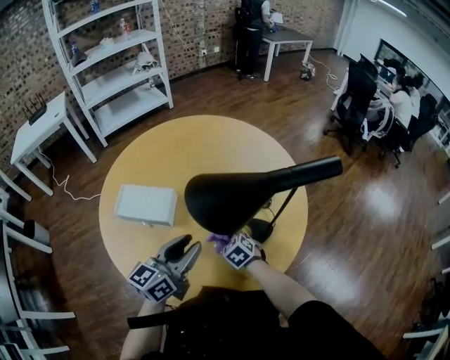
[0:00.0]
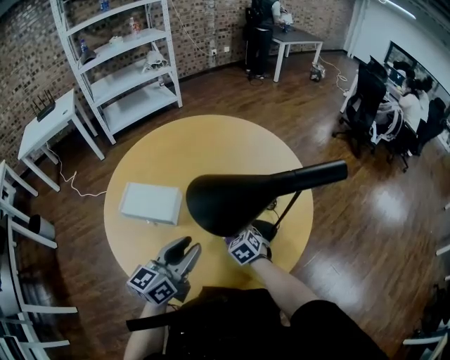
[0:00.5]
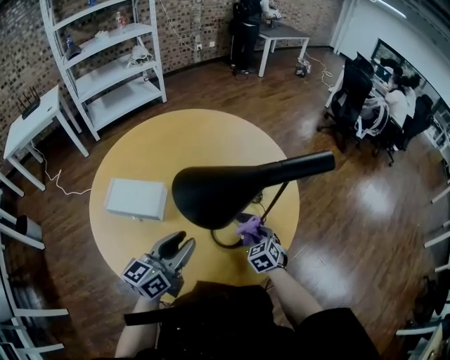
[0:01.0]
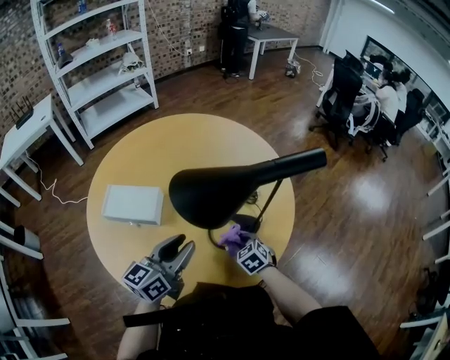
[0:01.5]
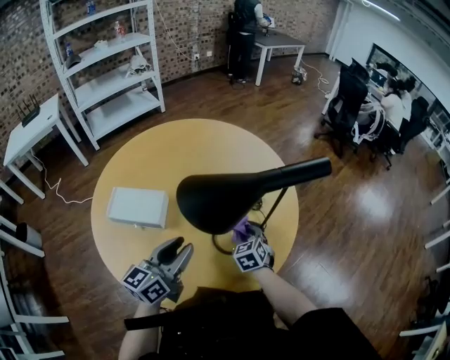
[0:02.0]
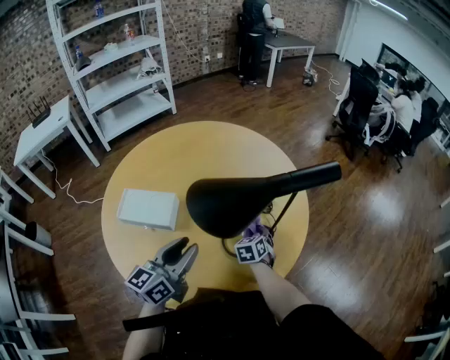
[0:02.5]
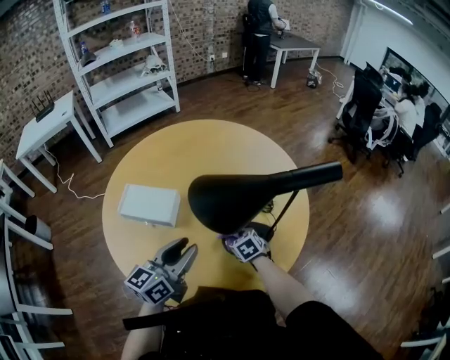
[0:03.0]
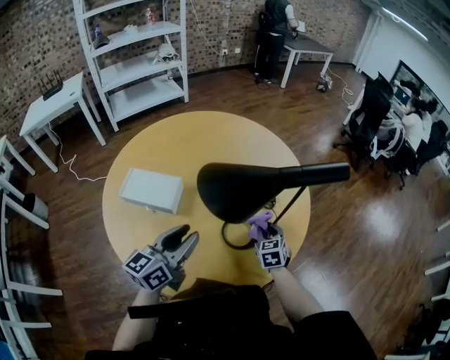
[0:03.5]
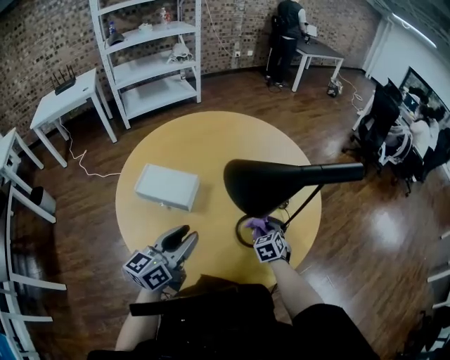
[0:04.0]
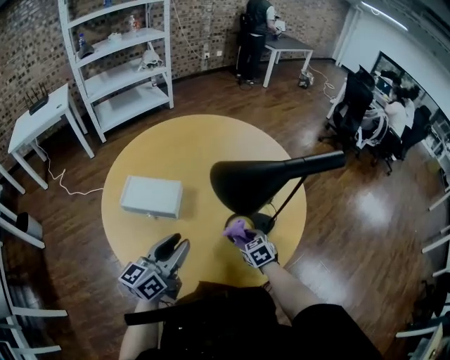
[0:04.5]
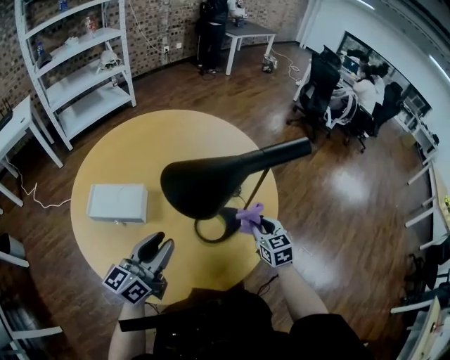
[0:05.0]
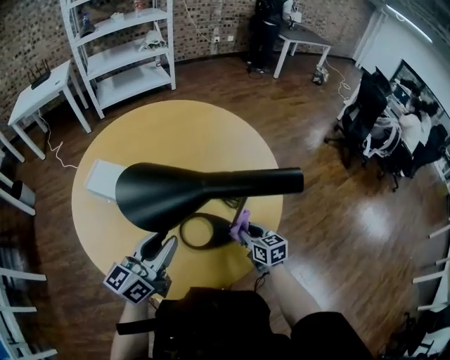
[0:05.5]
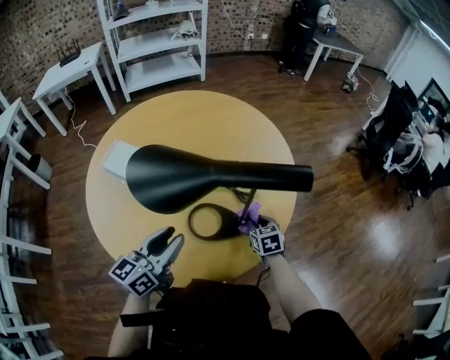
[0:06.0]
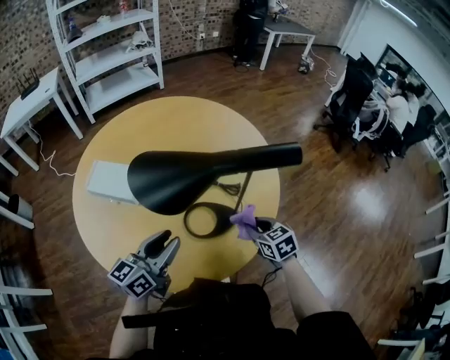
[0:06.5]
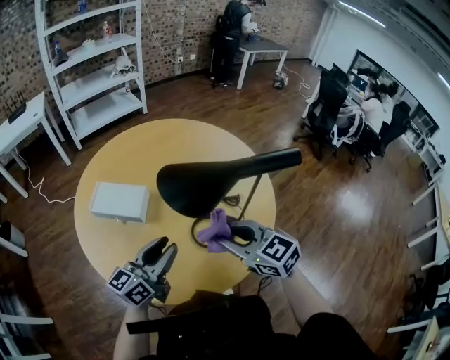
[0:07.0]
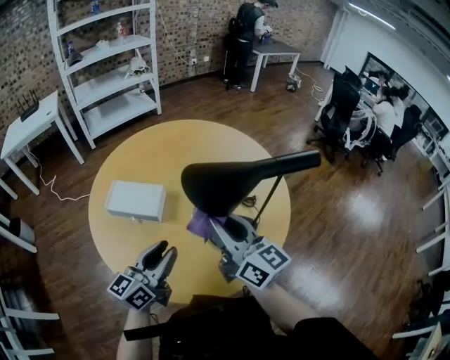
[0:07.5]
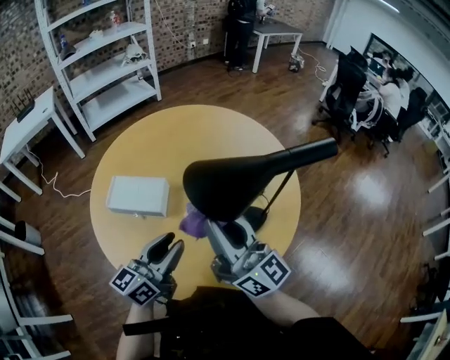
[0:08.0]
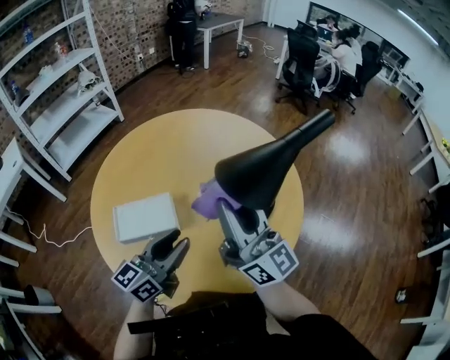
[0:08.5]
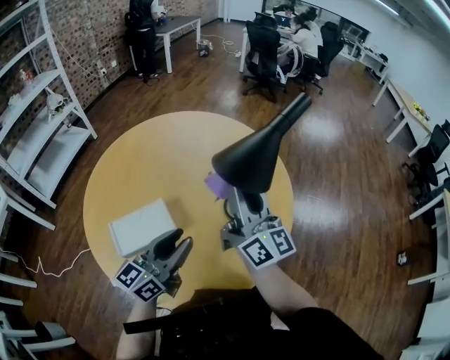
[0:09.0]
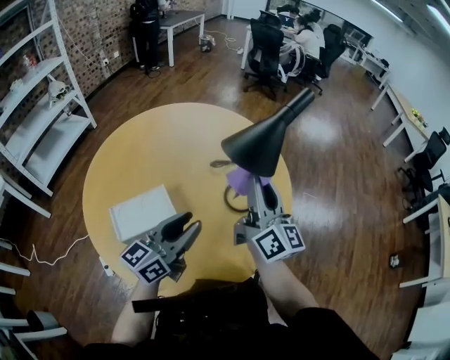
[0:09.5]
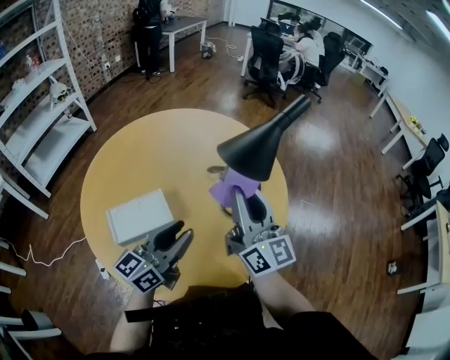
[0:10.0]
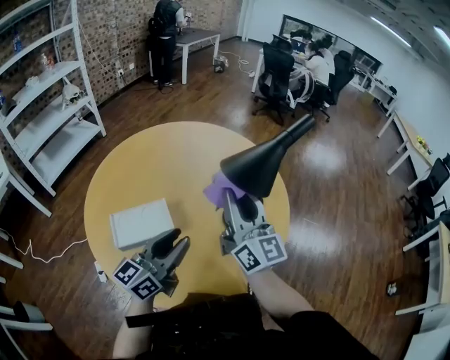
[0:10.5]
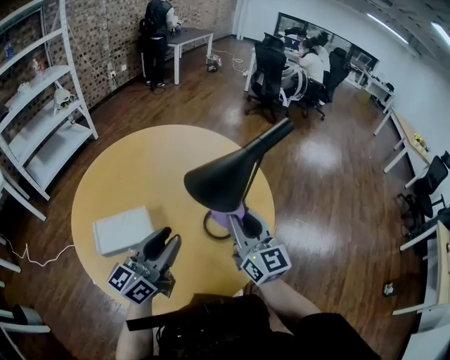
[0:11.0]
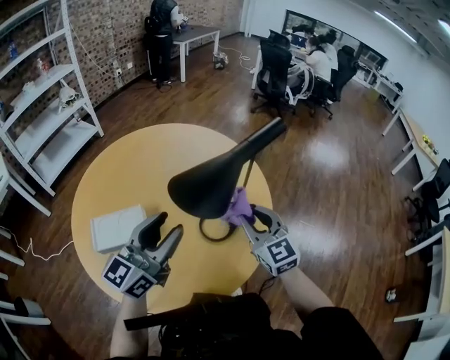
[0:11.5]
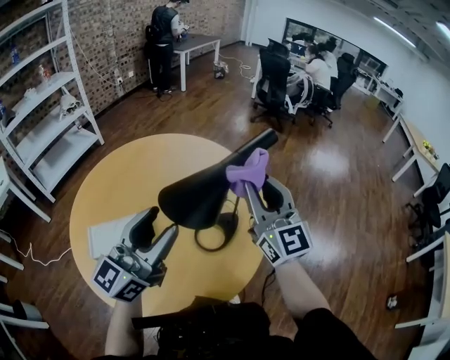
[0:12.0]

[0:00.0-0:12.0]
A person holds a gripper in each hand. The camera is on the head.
0:00.0 to 0:02.0: The right gripper heads to the right, covering some 10 cm, and rotates about 30 degrees.
0:02.0 to 0:04.0: The left gripper shifts by approximately 5 cm.
0:04.0 to 0:06.0: The grippers both shift to the right by approximately 10 cm.
0:06.0 to 0:08.0: The left gripper moves to the left, about 10 cm, while the right gripper shifts some 40 cm upward and to the left, and tilts its fingers roughly 70 degrees upward.
0:08.0 to 0:10.0: The right gripper turns by approximately 50 degrees, while the left gripper changes place by roughly 5 cm, and swivels roughly 30 degrees.
0:10.0 to 0:12.0: The left gripper moves upward and to the right, some 15 cm, swivels some 20 degrees, and opens up; the right gripper heads to the right and forward, covering about 15 cm, travels downward and back again, approximately 10 cm each way, and changes its angle by approximately 20 degrees.

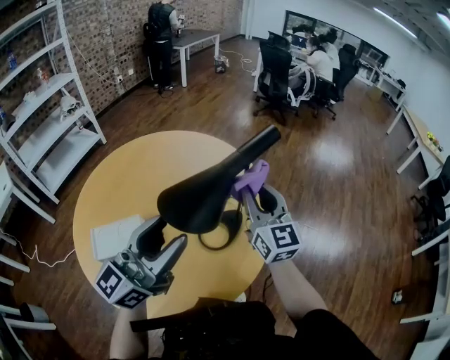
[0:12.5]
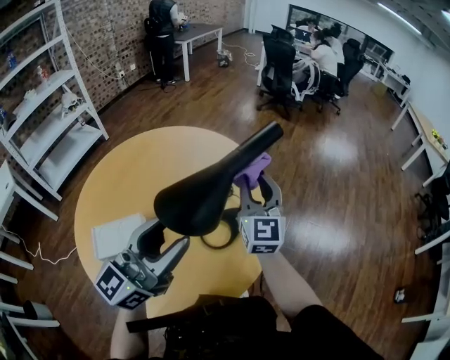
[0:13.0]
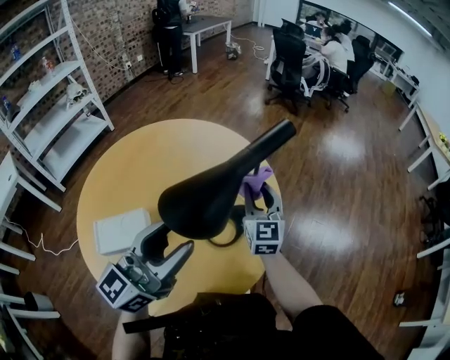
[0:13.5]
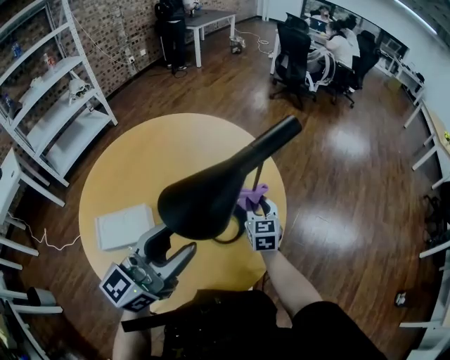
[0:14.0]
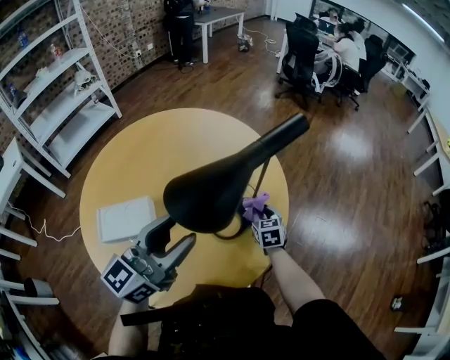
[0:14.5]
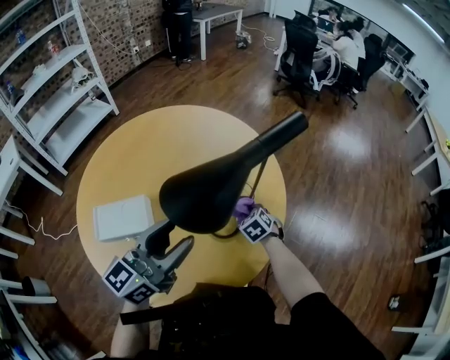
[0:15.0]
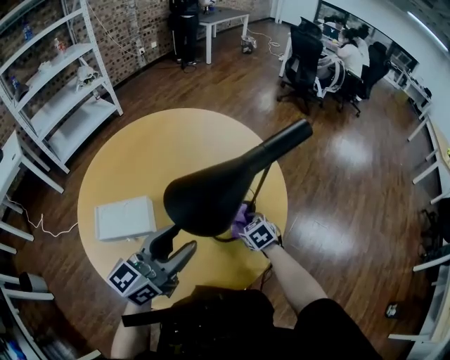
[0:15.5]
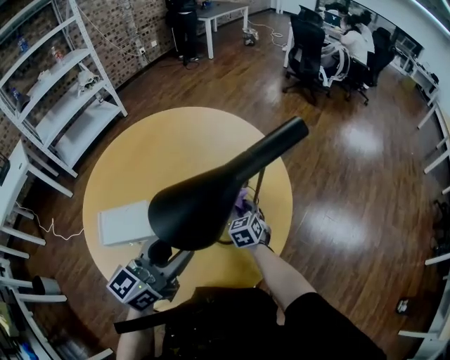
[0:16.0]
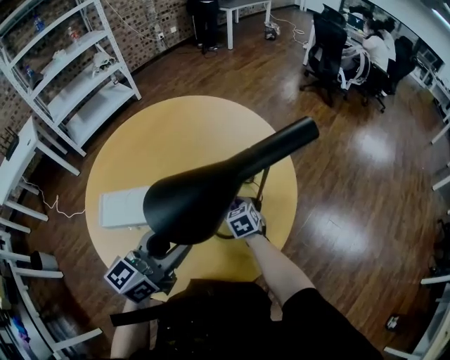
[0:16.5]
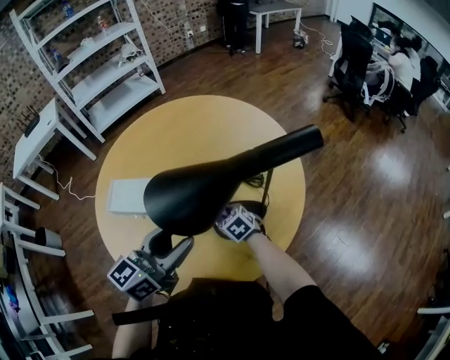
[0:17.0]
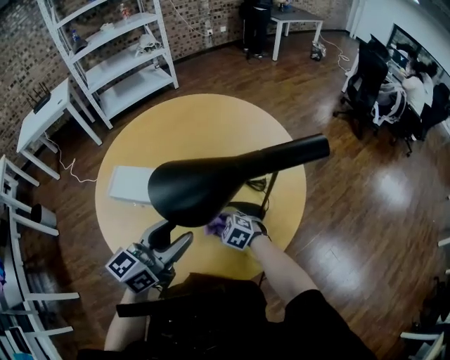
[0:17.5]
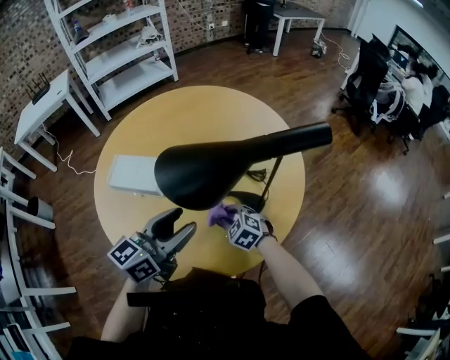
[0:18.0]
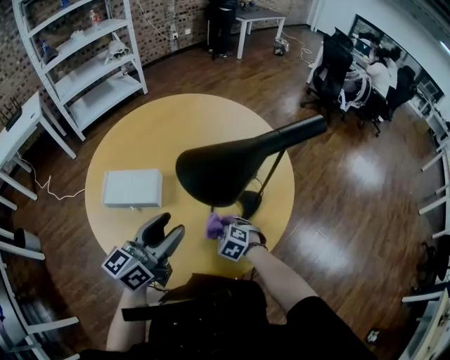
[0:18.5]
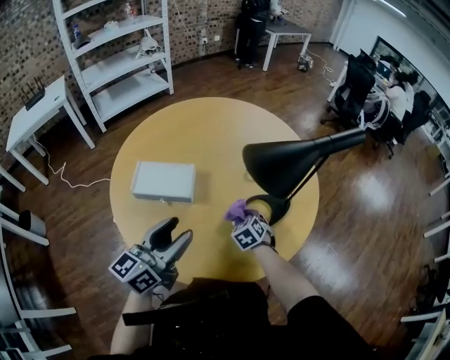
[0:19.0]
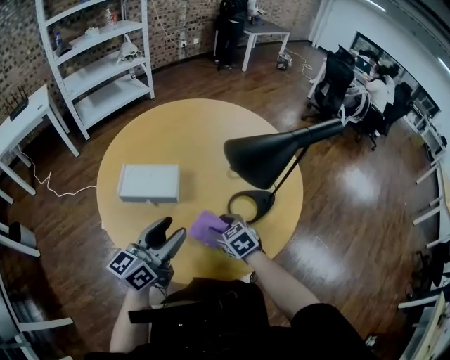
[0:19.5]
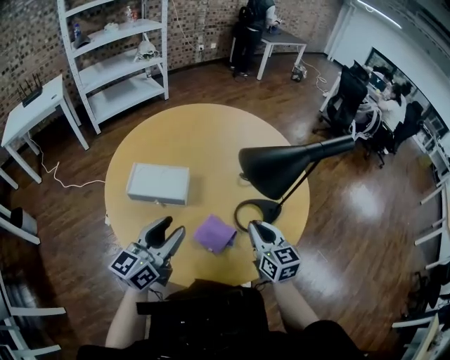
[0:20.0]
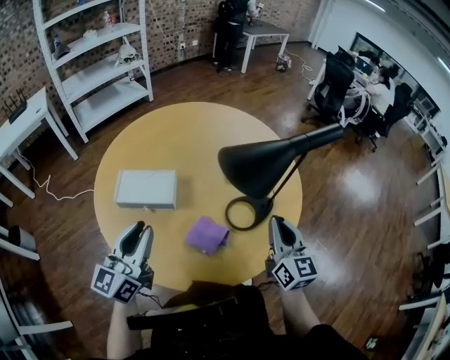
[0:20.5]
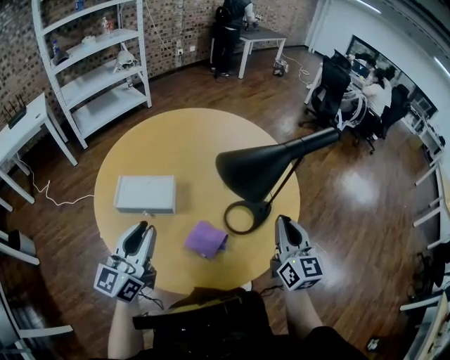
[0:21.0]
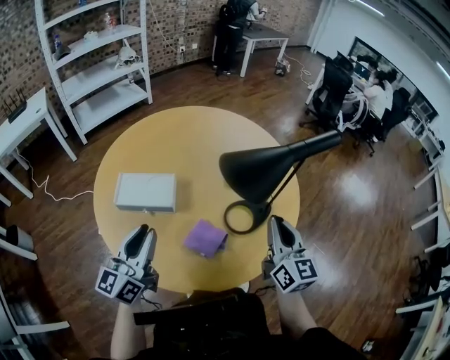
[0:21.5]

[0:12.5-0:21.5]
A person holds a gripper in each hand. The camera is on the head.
0:12.5 to 0:14.5: The left gripper is displaced downward by roughly 5 cm. Meanwhile the right gripper travels downward by roughly 30 cm, and angles its fingers downward, by about 50 degrees.
0:14.5 to 0:17.0: The left gripper goes about 5 cm downward, and swivels some 20 degrees. The right gripper moves about 20 cm, and rotates approximately 50 degrees.
0:17.0 to 0:19.5: The left gripper changes place by about 15 cm. The right gripper shifts by approximately 10 cm, and opens up.
0:19.5 to 0:21.5: The right gripper goes approximately 30 cm upward and to the right, tilts its fingers approximately 50 degrees upward, and closes; the left gripper travels to the left by roughly 5 cm, and closes.

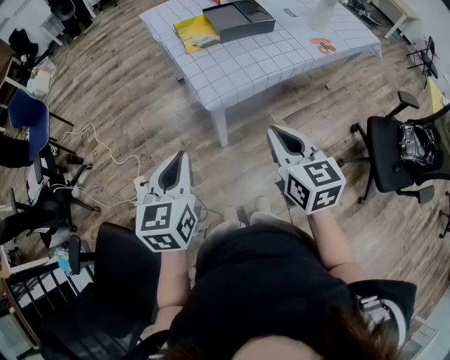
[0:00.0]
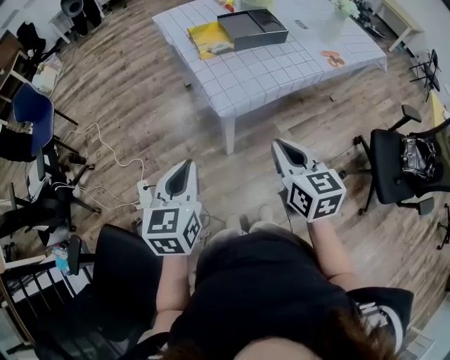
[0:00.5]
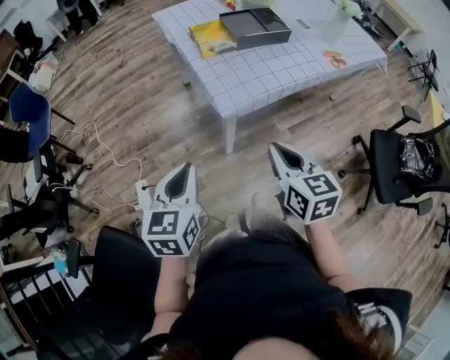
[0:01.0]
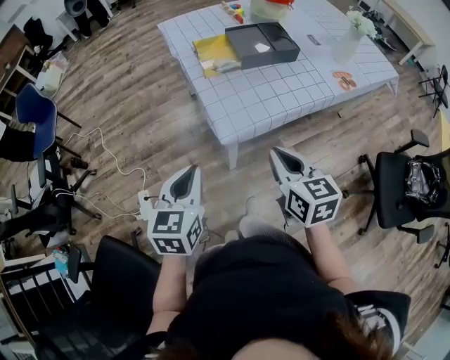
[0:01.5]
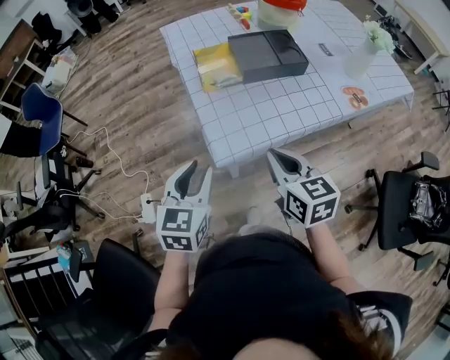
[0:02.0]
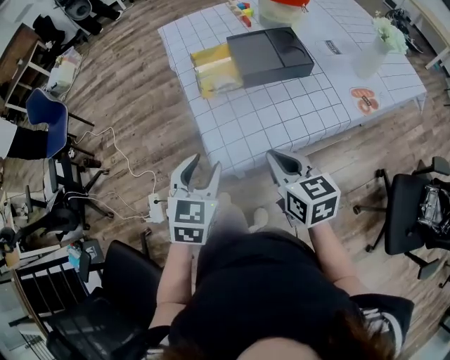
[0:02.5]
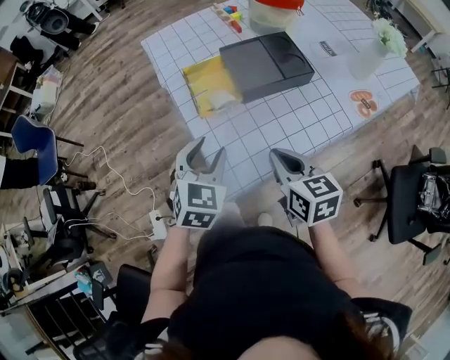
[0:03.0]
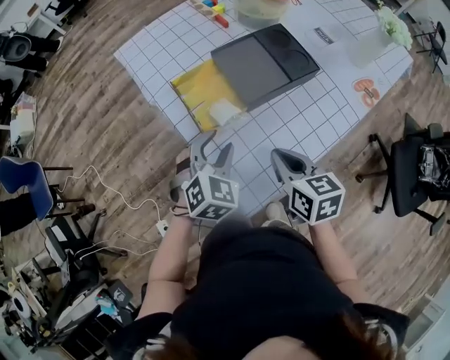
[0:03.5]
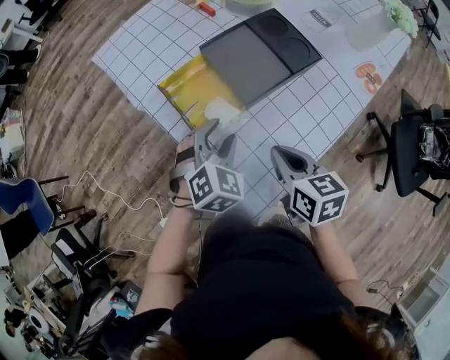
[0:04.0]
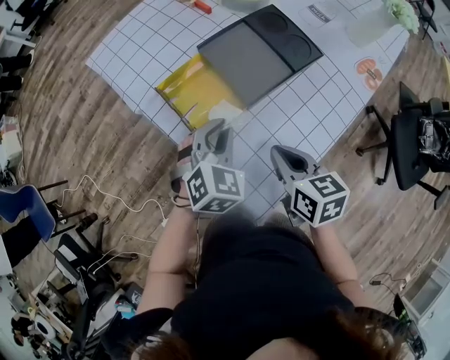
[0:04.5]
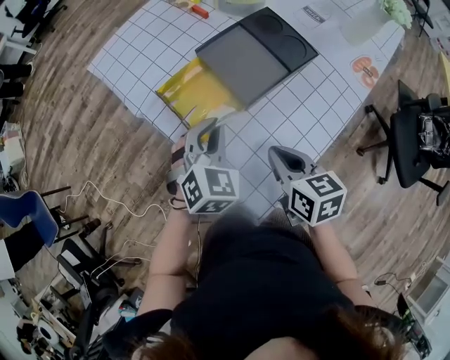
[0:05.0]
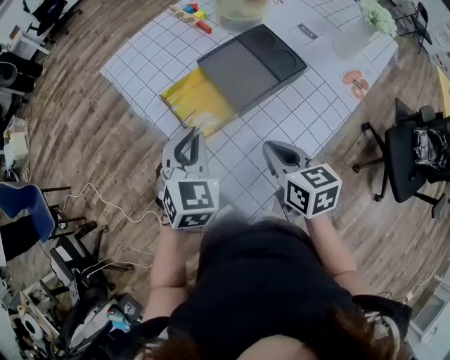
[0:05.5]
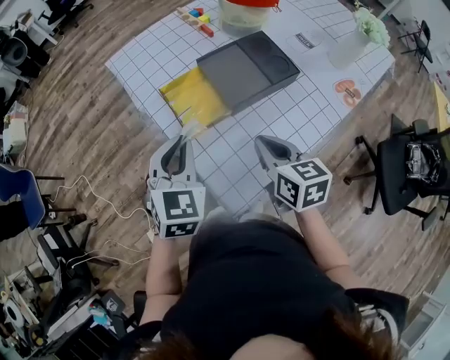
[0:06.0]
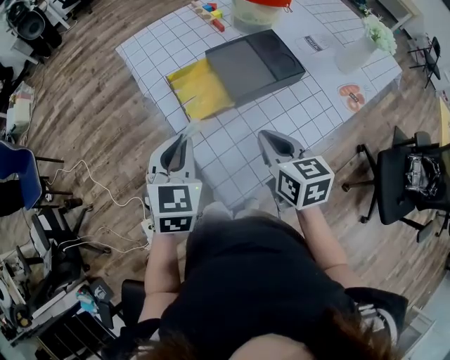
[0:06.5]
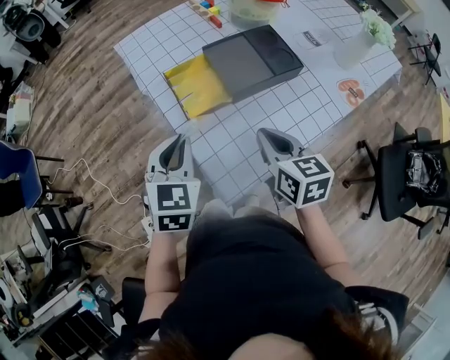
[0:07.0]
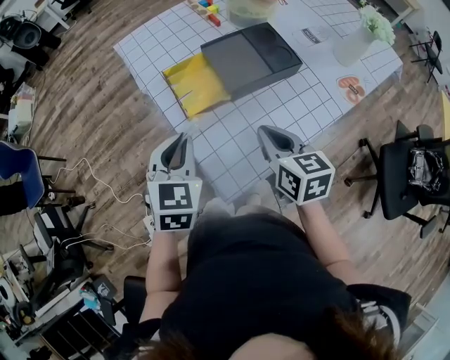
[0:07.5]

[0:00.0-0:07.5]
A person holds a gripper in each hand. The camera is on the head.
0:00.0 to 0:02.0: Both grippers travel together forward, roughly 20 cm. The left gripper opens up.
0:02.0 to 0:04.0: The right gripper travels forward and downward by some 20 cm, and swivels some 30 degrees. Meanwhile the left gripper shifts approximately 30 cm forward, rotates around the line of its fingers by about 50 degrees, clockwise from behind, and opens its fingers.
0:04.0 to 0:05.5: The left gripper goes about 10 cm upward, turns by roughly 20 degrees, and closes.
0:05.5 to 0:07.5: The left gripper goes approximately 10 cm backward.
